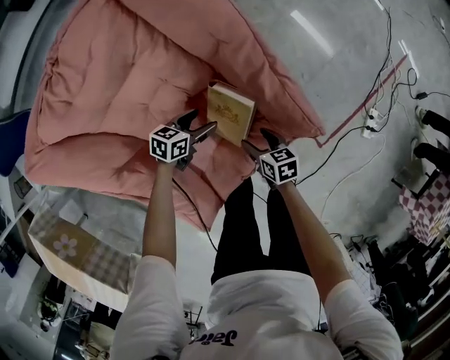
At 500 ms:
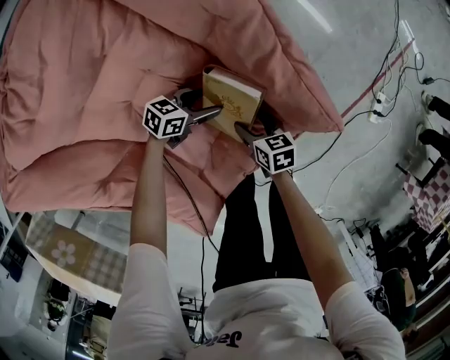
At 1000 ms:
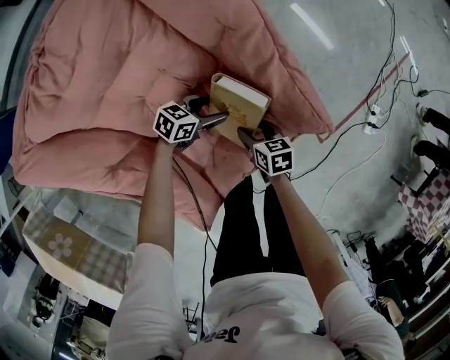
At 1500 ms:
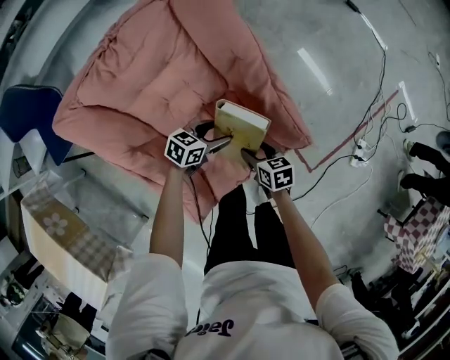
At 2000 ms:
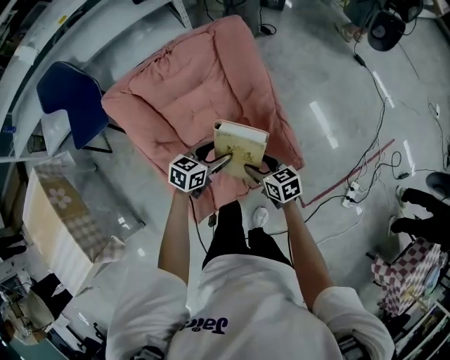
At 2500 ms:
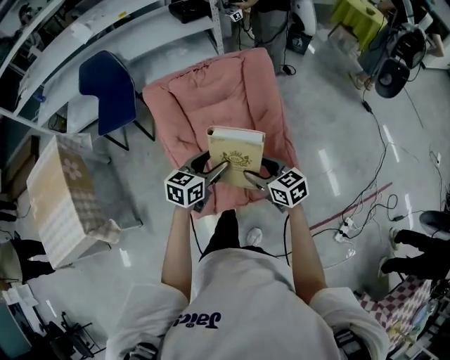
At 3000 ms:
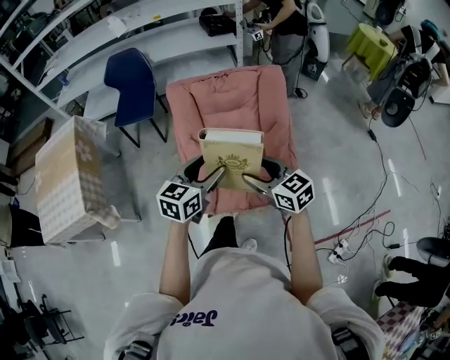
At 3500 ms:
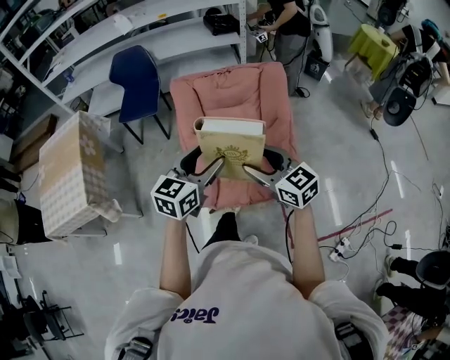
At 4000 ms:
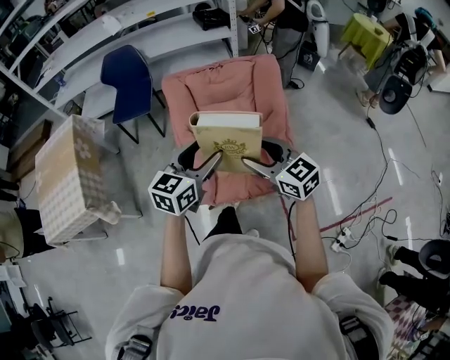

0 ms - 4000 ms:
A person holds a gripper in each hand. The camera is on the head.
0 ms - 2000 ms: The two grippers go about 25 cm upward. The right gripper rotates approximately 30 degrees. The left gripper rotates some 20 degrees.
2000 ms - 4000 ms: Both grippers travel together upward, about 30 cm. The right gripper rotates about 40 degrees, while the left gripper changes its angle by some 40 degrees.

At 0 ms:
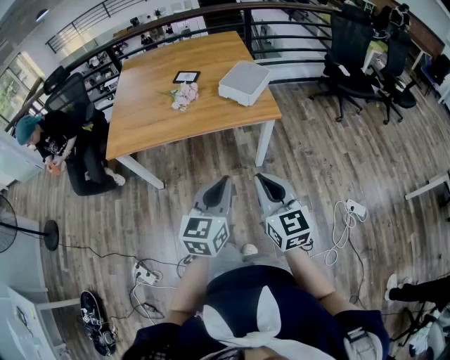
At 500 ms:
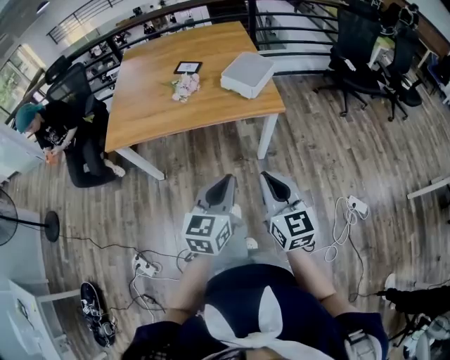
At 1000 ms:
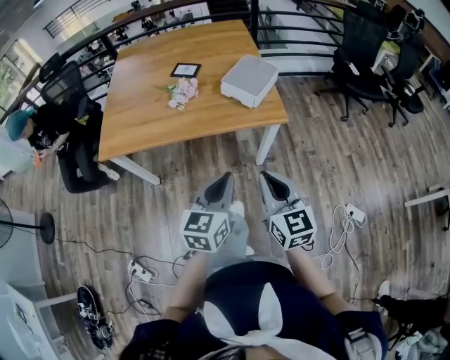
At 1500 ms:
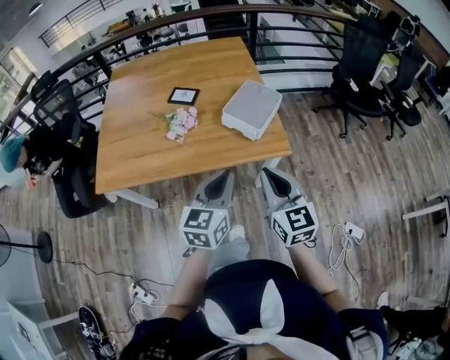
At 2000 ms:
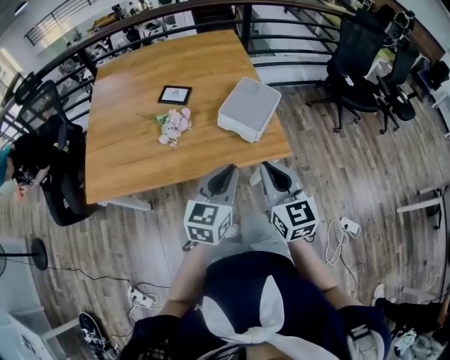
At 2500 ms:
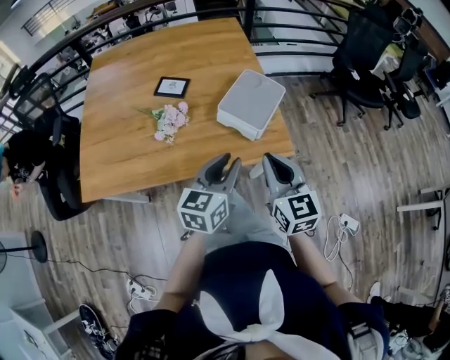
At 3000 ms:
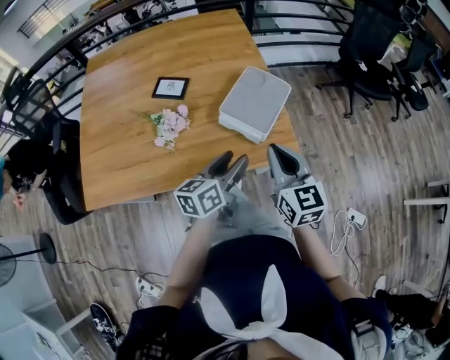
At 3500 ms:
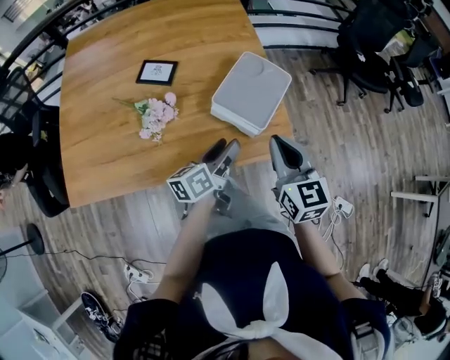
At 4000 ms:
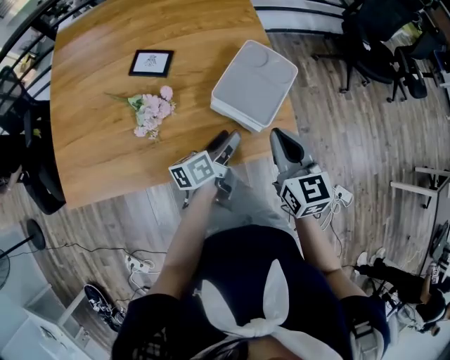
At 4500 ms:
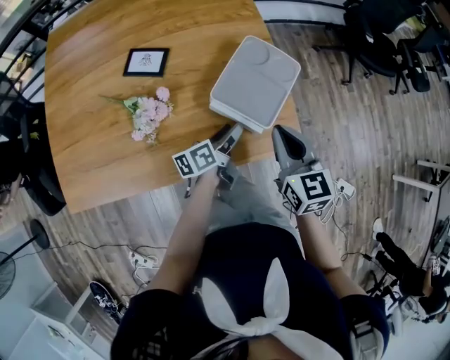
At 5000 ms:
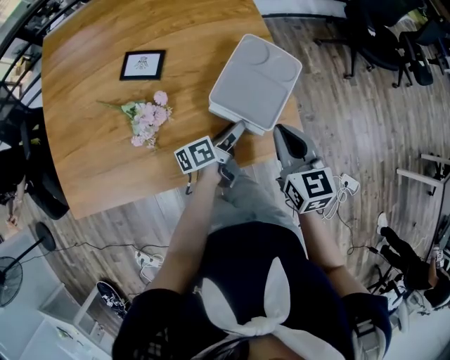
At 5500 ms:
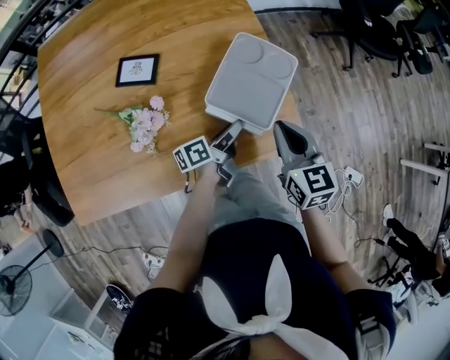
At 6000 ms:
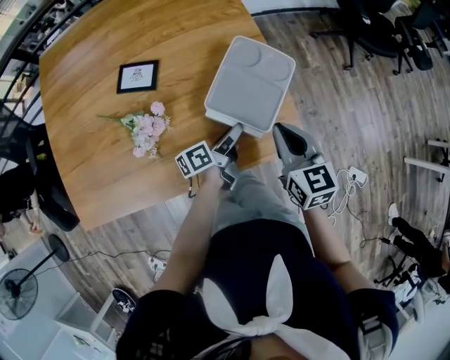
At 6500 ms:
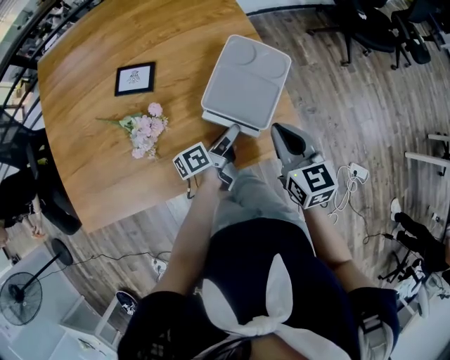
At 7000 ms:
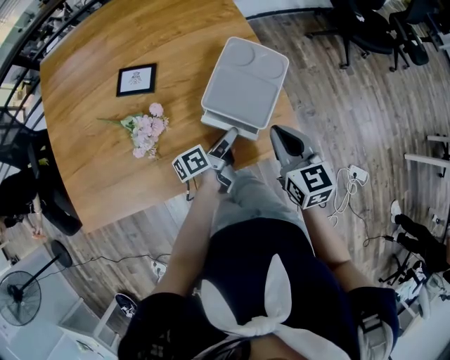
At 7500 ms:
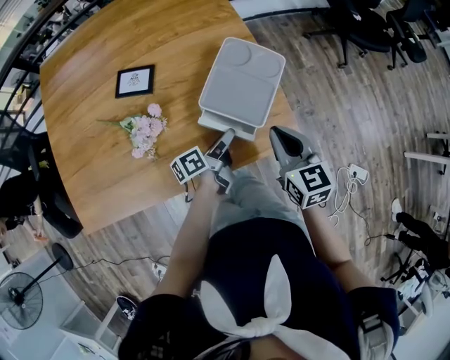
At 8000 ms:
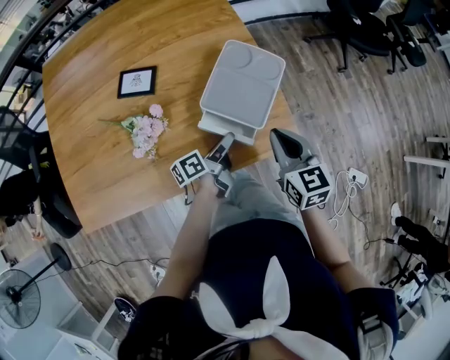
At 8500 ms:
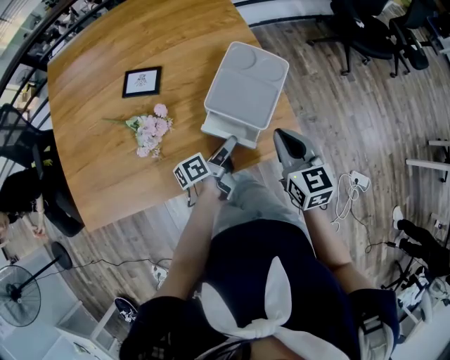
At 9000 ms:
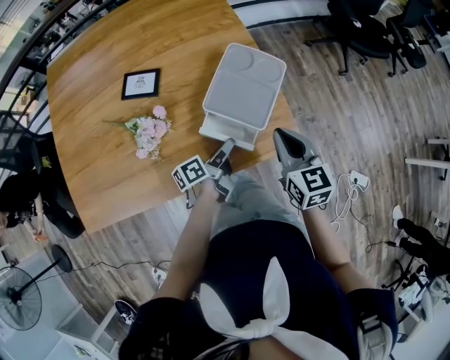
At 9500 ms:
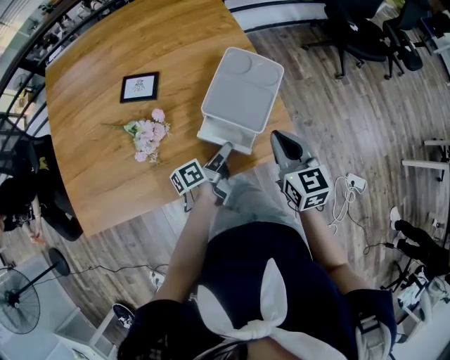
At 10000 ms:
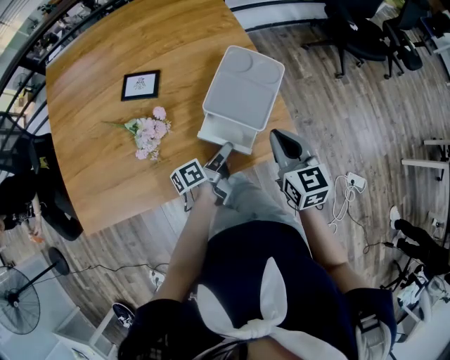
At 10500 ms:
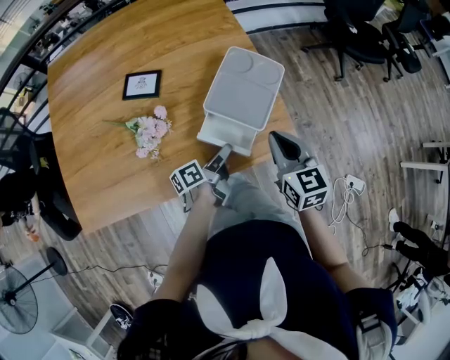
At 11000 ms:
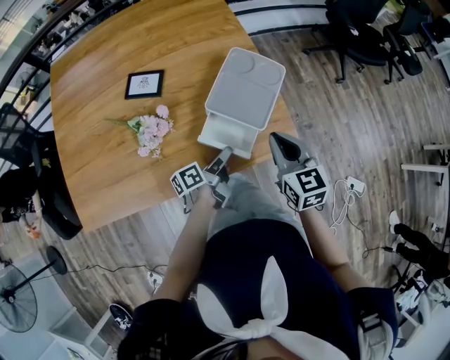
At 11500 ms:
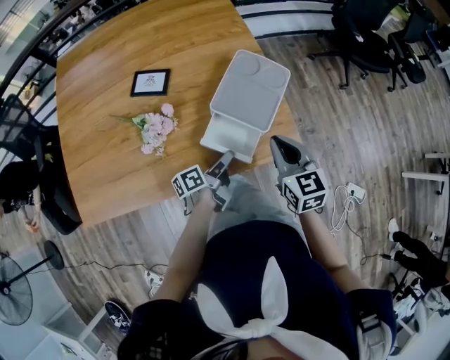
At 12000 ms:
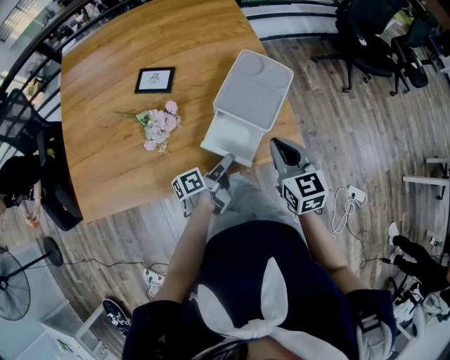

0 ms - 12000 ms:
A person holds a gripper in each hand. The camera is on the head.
0 ms - 2000 ms: Both grippers travel together forward, some 35 cm.
2000 ms - 4000 ms: Both grippers move forward and downward, some 25 cm. The left gripper twists about 50 degrees counterclockwise, seen from behind, and opens up.
4000 ms - 6000 ms: The left gripper travels downward and forward by roughly 10 cm, while the right gripper shifts some 5 cm forward.
6000 ms - 8000 ms: The grippers stay close to where they were, moving slightly.
8000 ms - 10000 ms: The grippers make only small movements.
10000 ms - 12000 ms: The left gripper shifts by approximately 5 cm.

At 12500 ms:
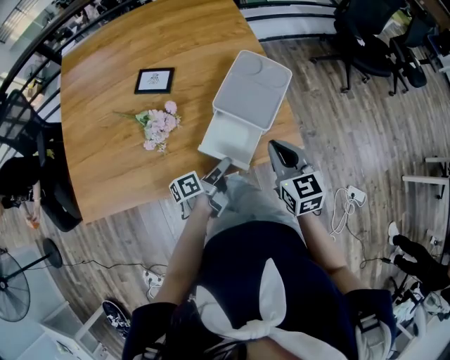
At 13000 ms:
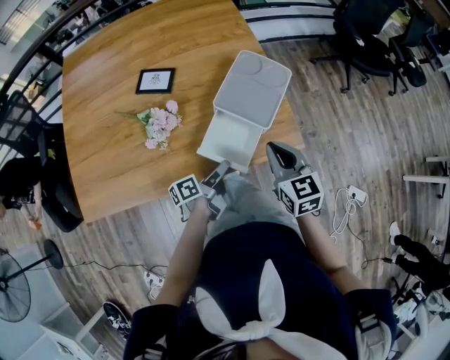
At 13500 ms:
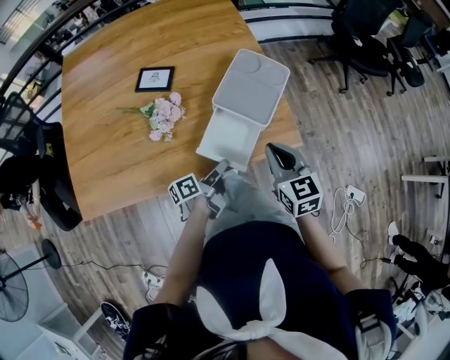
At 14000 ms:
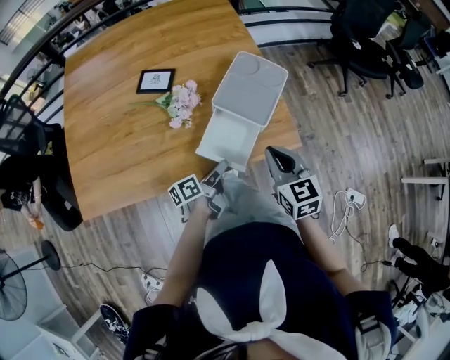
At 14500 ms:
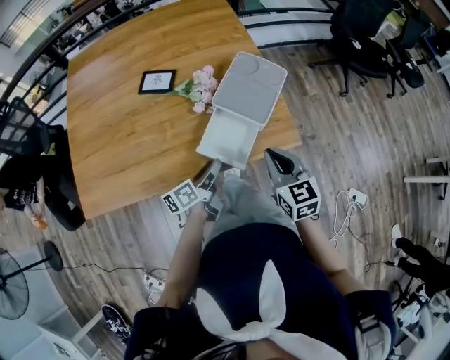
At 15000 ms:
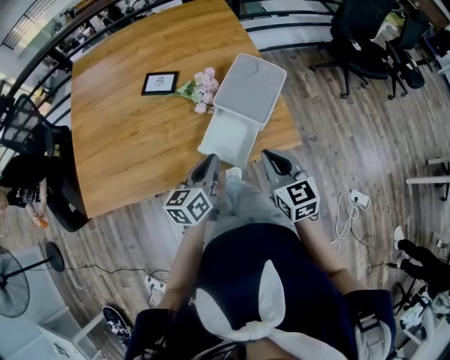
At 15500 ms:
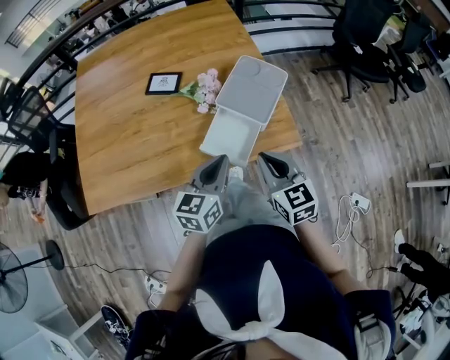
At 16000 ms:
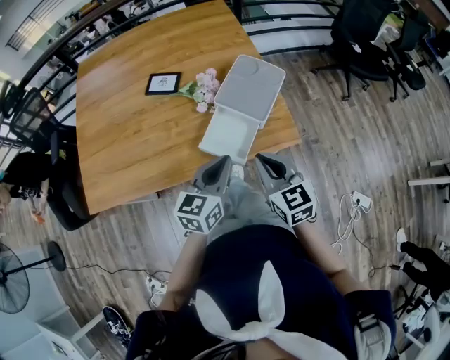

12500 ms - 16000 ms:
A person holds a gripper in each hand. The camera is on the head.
12500 ms - 14500 ms: The left gripper moves some 5 cm. Meanwhile the right gripper heads backward, covering some 5 cm.
14500 ms - 16000 ms: The right gripper changes place by some 5 cm. The left gripper moves upward, some 15 cm, rolls clockwise, seen from behind, by roughly 50 degrees, and closes.

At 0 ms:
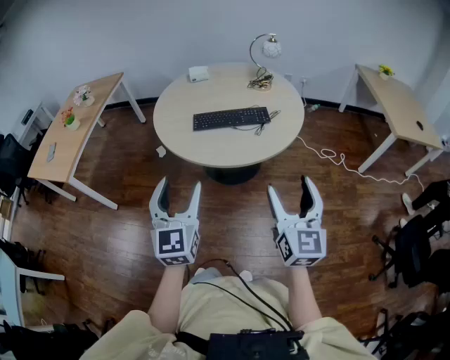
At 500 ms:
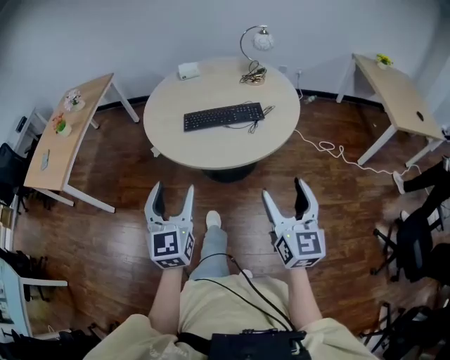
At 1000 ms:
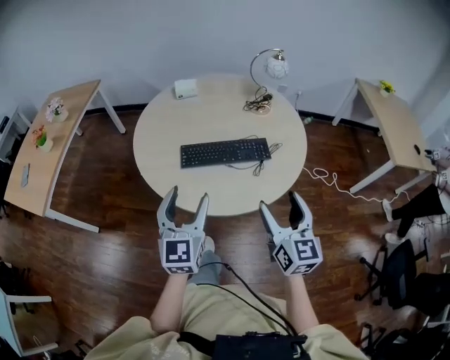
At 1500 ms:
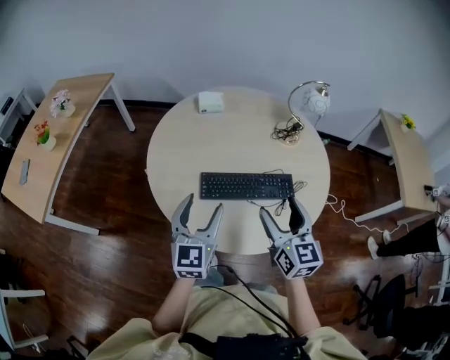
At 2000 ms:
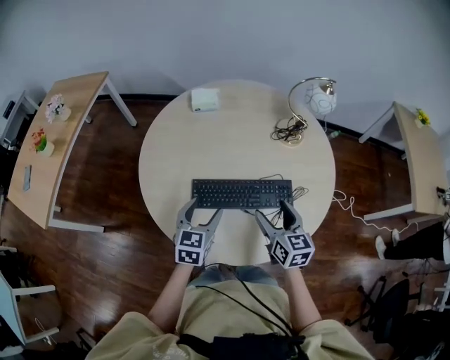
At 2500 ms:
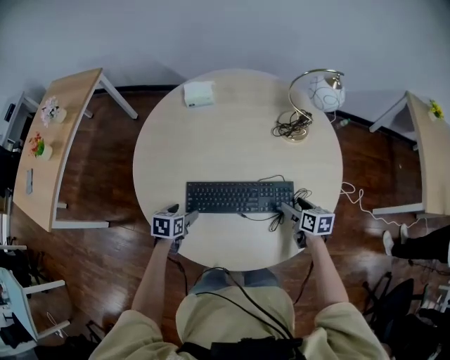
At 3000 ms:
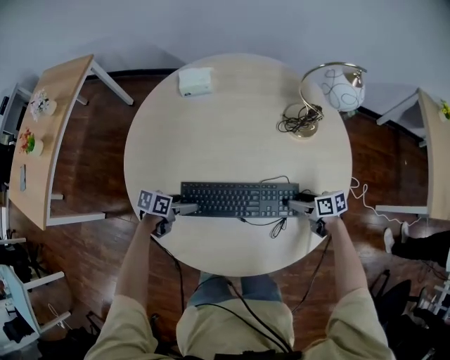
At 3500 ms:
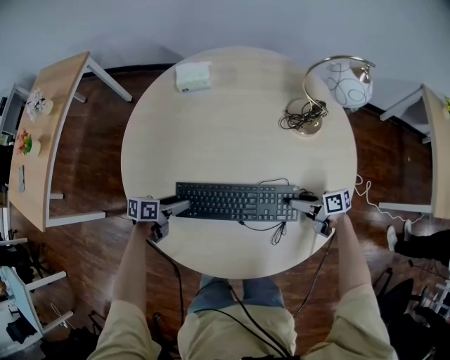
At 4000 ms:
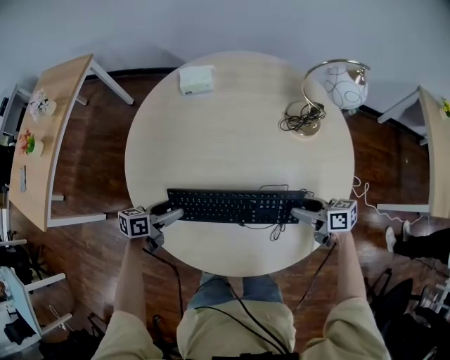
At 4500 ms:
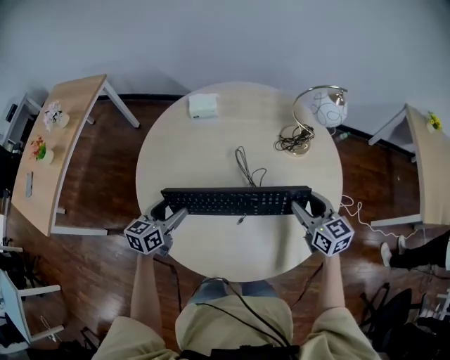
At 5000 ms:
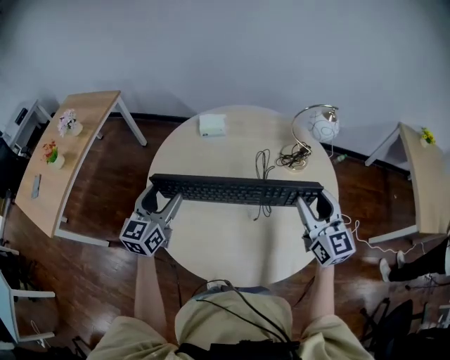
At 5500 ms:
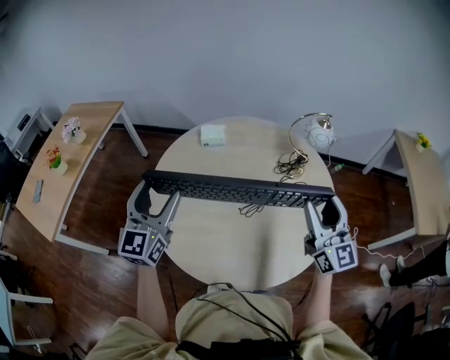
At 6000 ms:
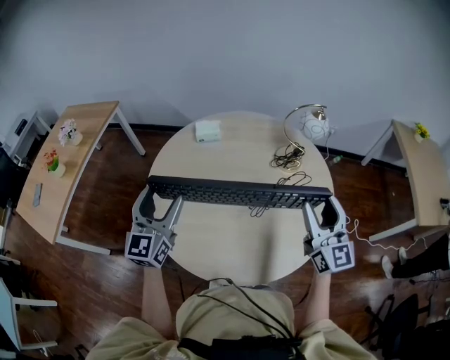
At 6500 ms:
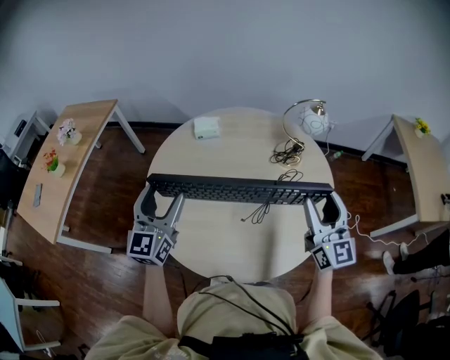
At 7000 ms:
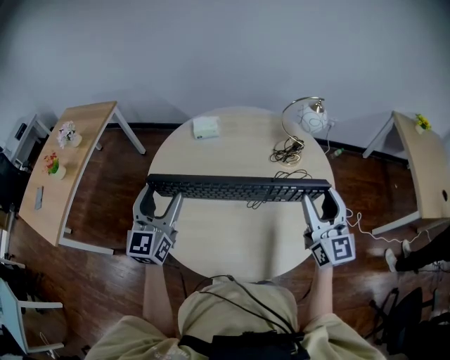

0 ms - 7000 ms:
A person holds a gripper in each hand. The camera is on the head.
0 ms - 2000 ms: The two grippers travel together, forward, roughly 50 cm. The right gripper rotates about 30 degrees. Meanwhile the left gripper changes its angle by some 30 degrees.
2000 ms - 3500 ms: The two grippers go about 20 cm downward. The left gripper turns by about 50 degrees; the right gripper turns by approximately 60 degrees.
3500 ms - 5000 ms: The two grippers go roughly 35 cm upward. The right gripper changes its angle by roughly 80 degrees; the left gripper tilts its fingers approximately 30 degrees upward.
5000 ms - 7000 ms: The right gripper shifts by approximately 5 cm. The left gripper goes roughly 5 cm upward.
